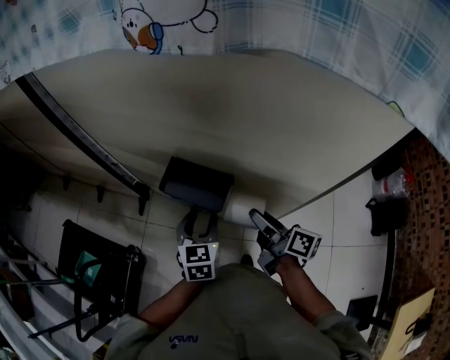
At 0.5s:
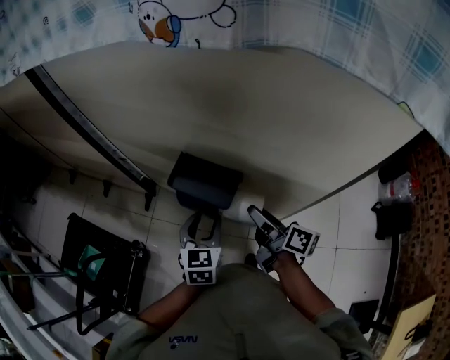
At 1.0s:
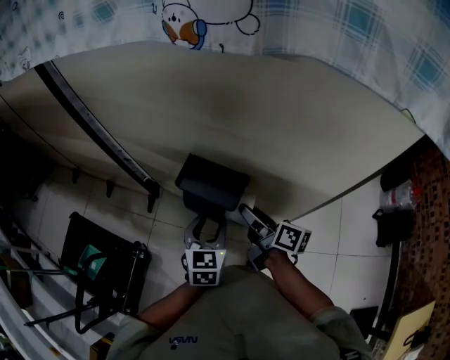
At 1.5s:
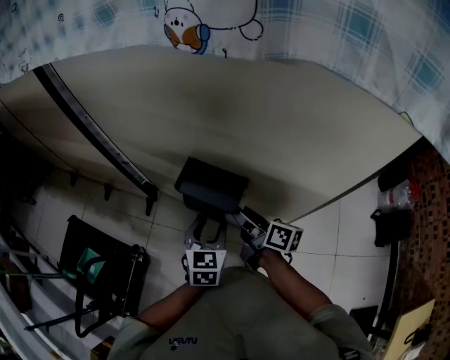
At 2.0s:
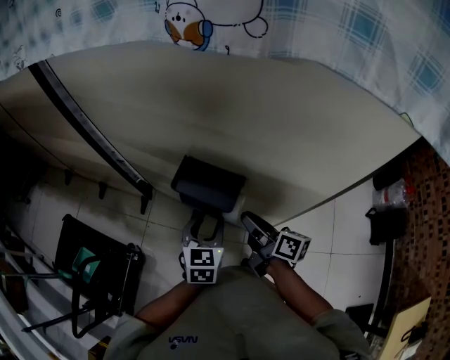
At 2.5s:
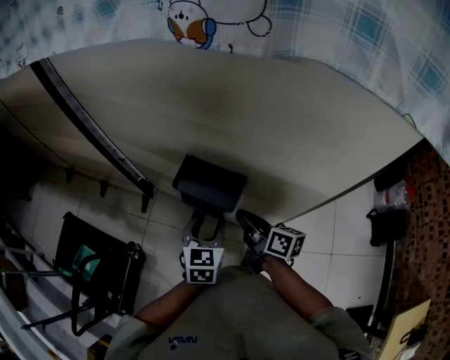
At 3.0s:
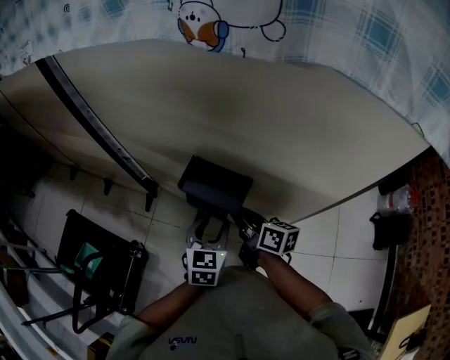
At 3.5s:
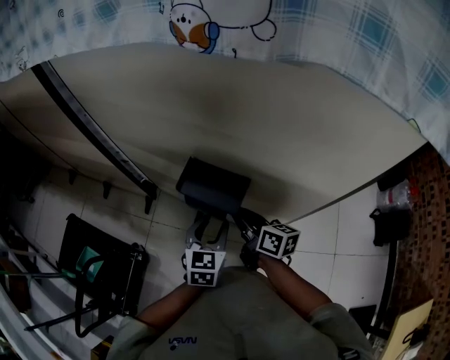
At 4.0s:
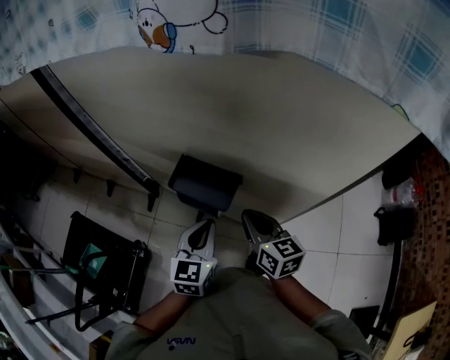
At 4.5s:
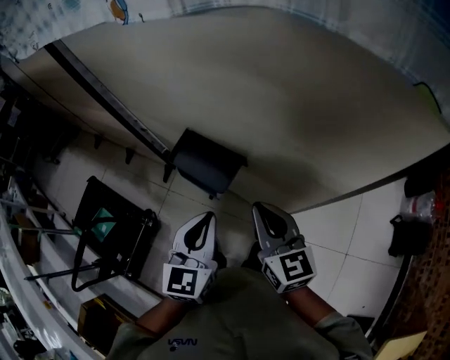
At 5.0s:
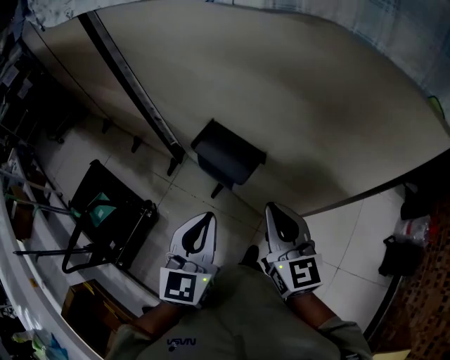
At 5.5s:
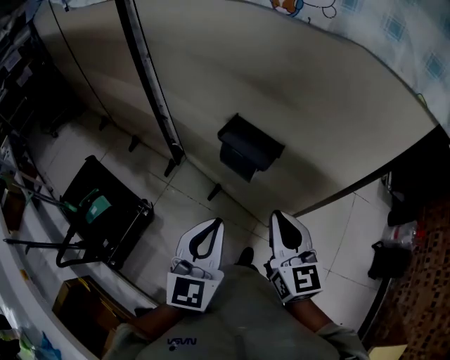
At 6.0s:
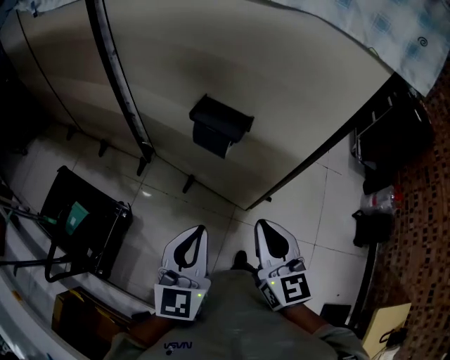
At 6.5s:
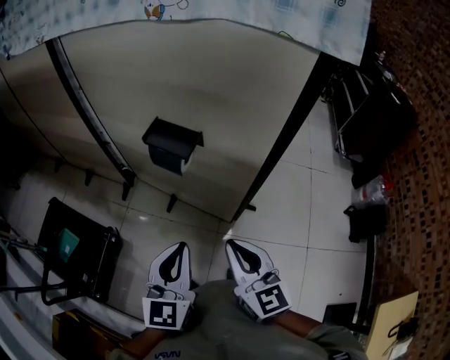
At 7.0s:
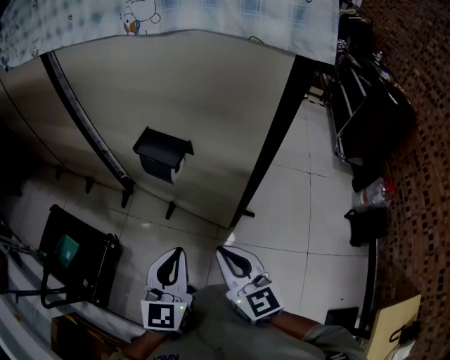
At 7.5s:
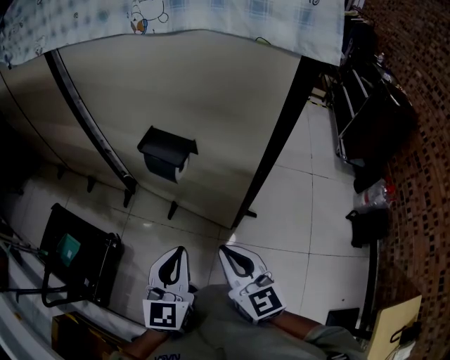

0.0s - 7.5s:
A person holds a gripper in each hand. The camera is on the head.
0.0s - 2.0s: The right gripper heads to the left, covering about 5 cm, and closes its fingers.
2.0s - 4.0s: The right gripper turns by roughly 40 degrees, while the left gripper closes its fingers.
4.0s - 5.5s: The left gripper is displaced backward, upward and to the left by approximately 20 cm. The right gripper shifts roughly 15 cm backward and upward, and turns by some 20 degrees.
5.5s - 7.5s: The left gripper moves to the right and backward, about 15 cm. Meanwhile the right gripper goes some 15 cm backward and to the right.

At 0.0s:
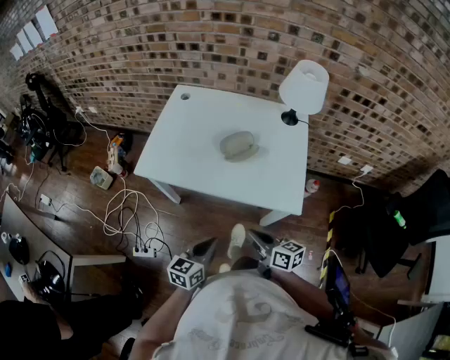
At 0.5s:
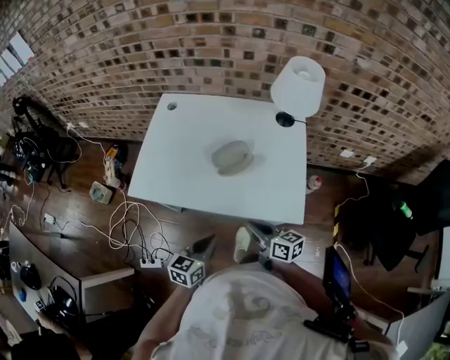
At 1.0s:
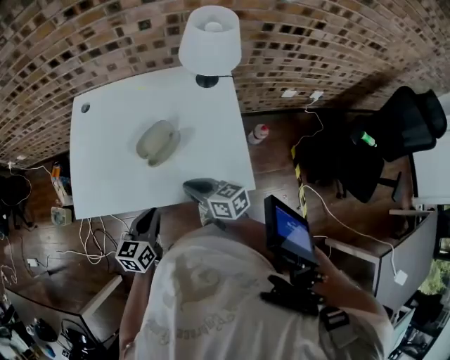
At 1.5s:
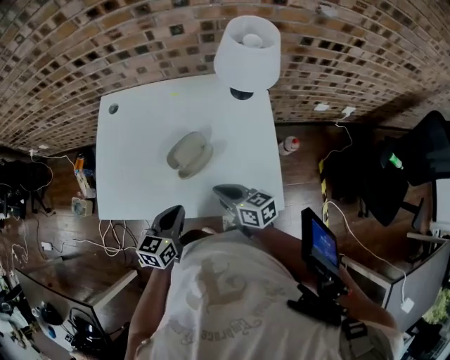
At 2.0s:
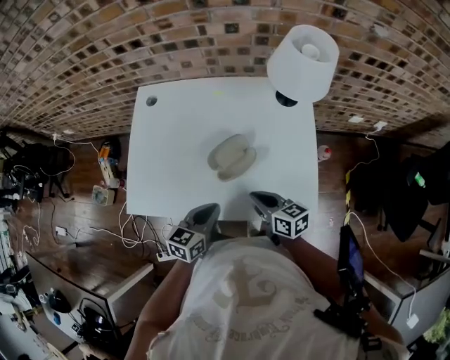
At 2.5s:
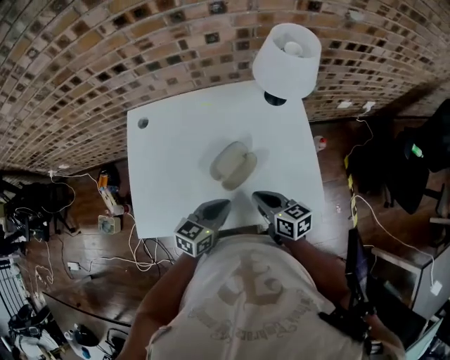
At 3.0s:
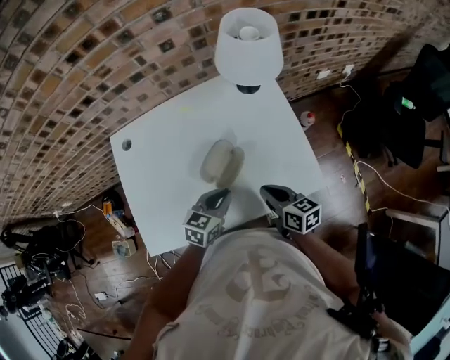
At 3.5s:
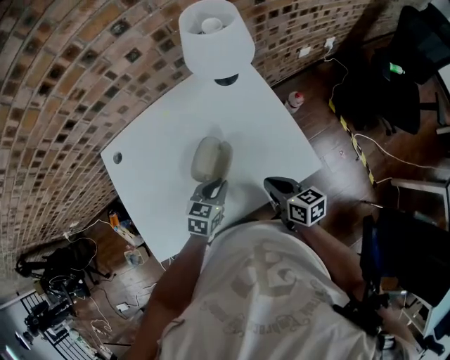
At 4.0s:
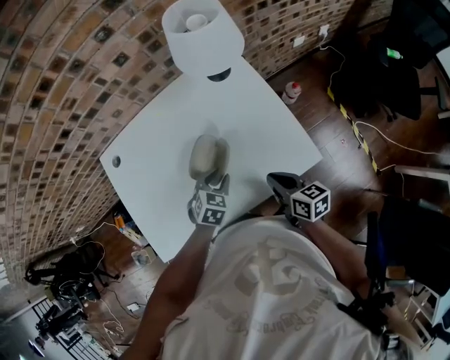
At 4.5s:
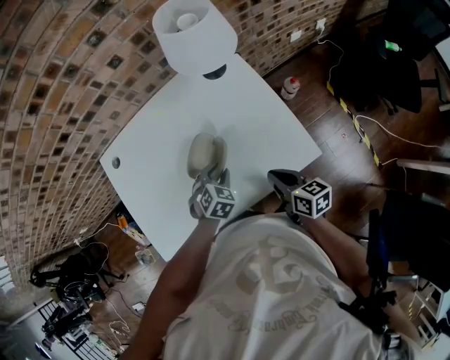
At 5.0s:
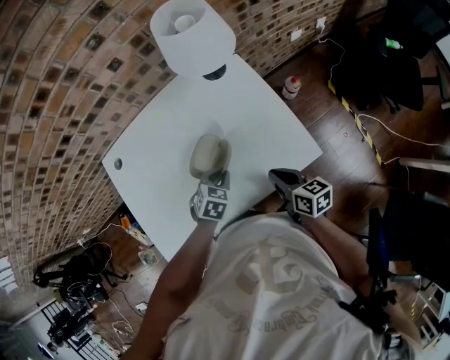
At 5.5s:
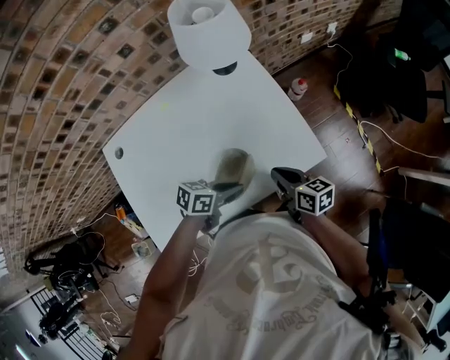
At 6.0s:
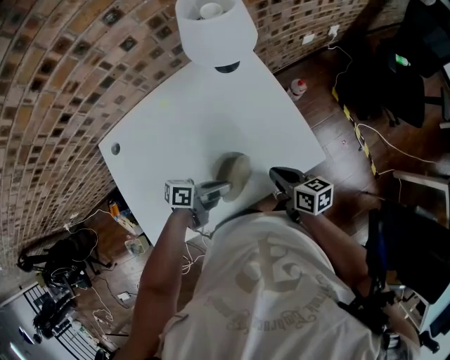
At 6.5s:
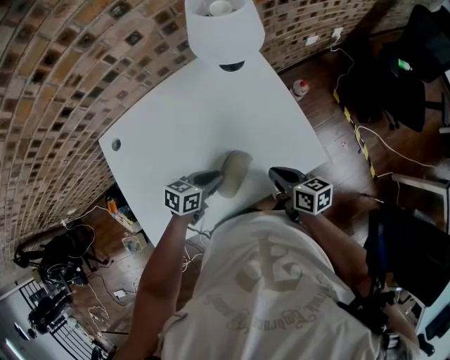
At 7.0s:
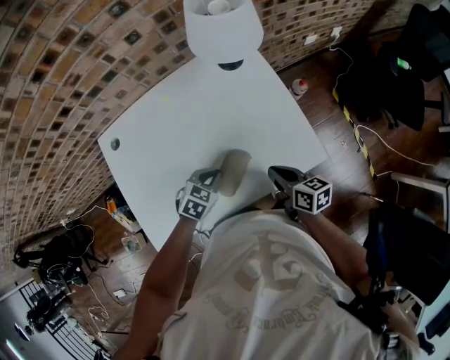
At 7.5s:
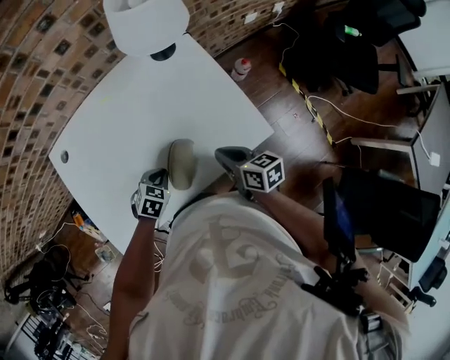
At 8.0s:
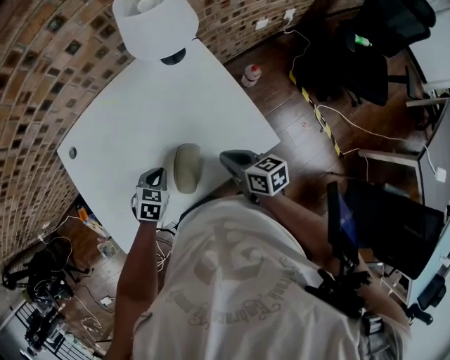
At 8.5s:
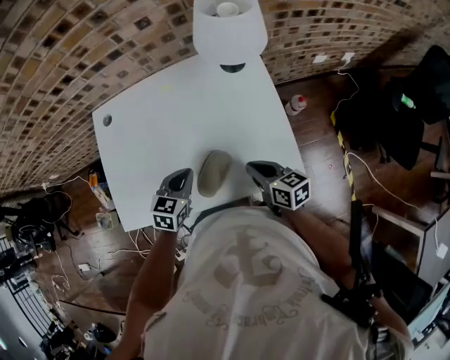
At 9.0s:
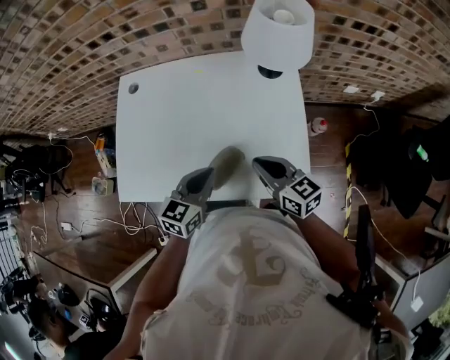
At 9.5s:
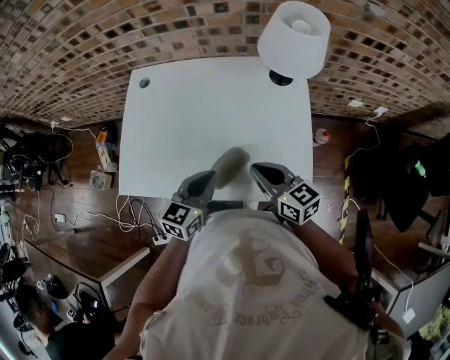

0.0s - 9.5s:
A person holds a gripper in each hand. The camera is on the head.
0.0s - 2.0s: Both grippers travel together forward, approximately 25 cm.
2.0s - 4.0s: The left gripper shifts by approximately 15 cm, rotates around the line of its fingers by approximately 40 degrees, clockwise from behind, and opens its fingers; the right gripper shifts by some 5 cm, and rotates approximately 30 degrees.
4.0s - 5.5s: The left gripper moves about 10 cm, rotates some 50 degrees, and closes up.
5.5s - 7.5s: The left gripper moves about 15 cm, and tips its fingers downward by some 30 degrees.
7.5s - 9.5s: The left gripper travels upward by about 20 cm, and angles its fingers upward, by some 40 degrees. The right gripper heads upward, covering approximately 10 cm, and swivels some 40 degrees.

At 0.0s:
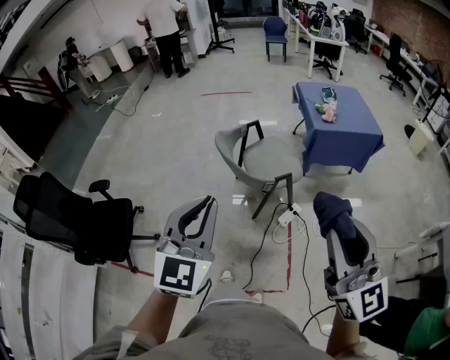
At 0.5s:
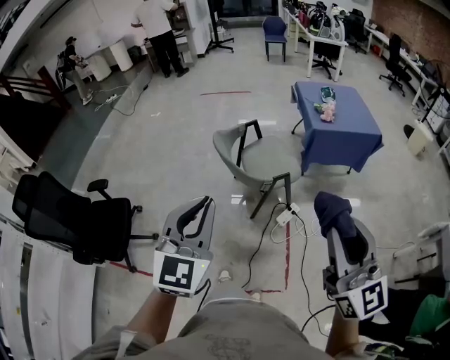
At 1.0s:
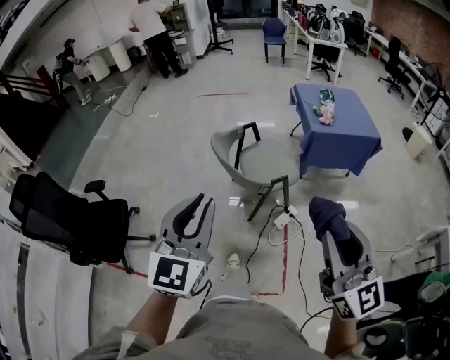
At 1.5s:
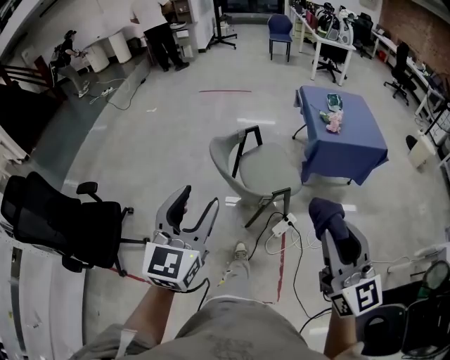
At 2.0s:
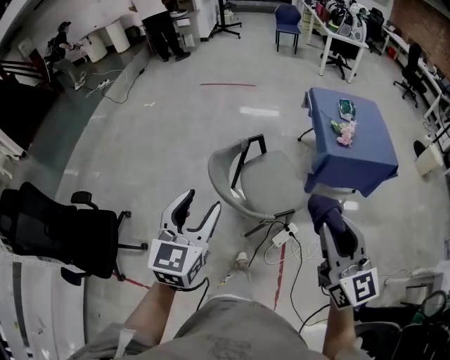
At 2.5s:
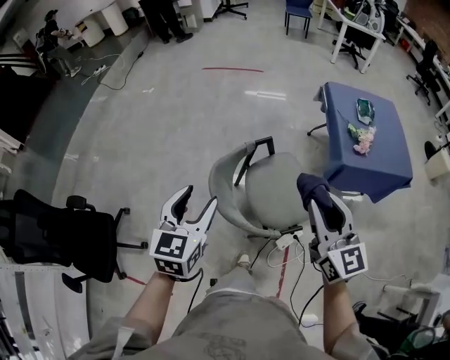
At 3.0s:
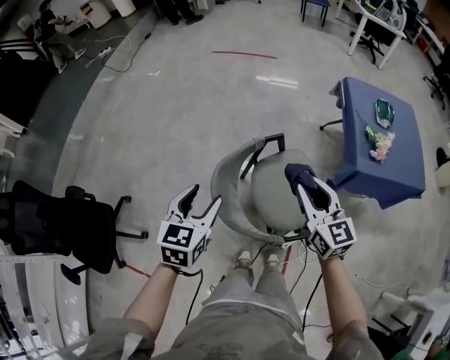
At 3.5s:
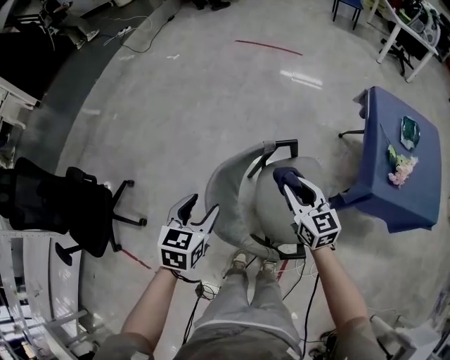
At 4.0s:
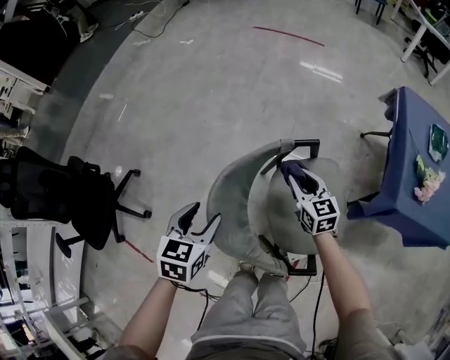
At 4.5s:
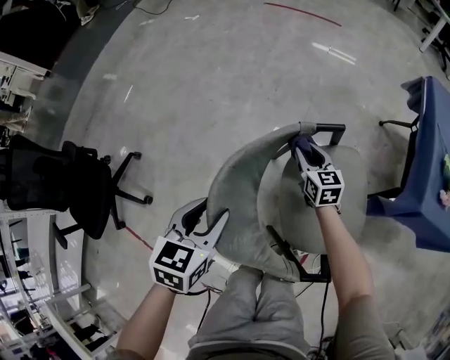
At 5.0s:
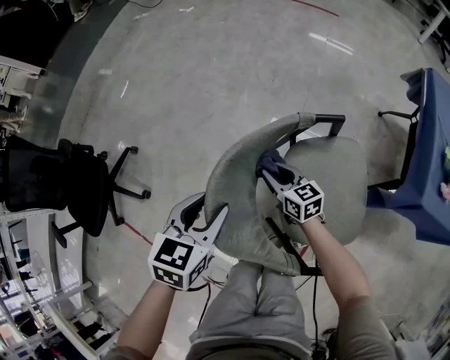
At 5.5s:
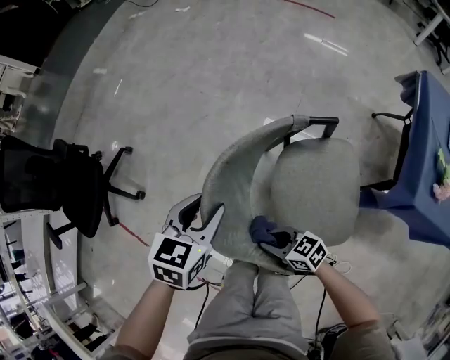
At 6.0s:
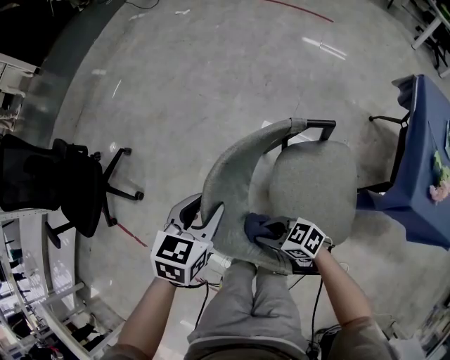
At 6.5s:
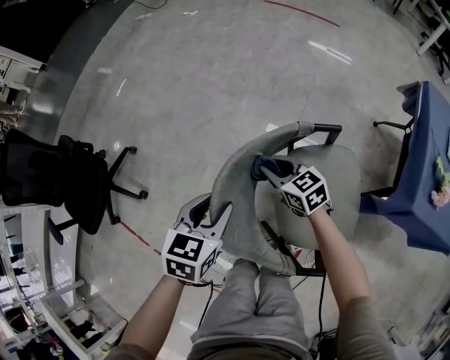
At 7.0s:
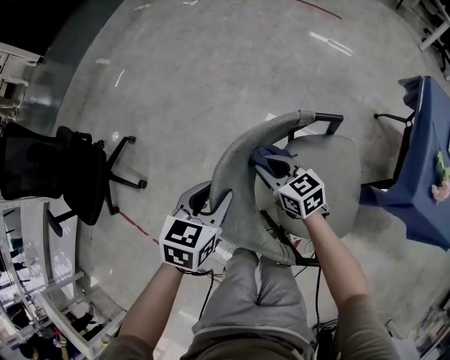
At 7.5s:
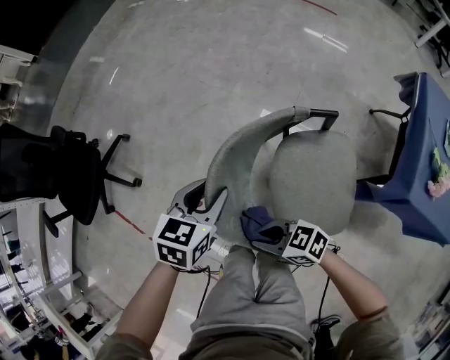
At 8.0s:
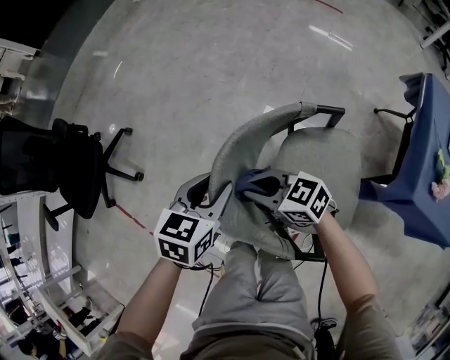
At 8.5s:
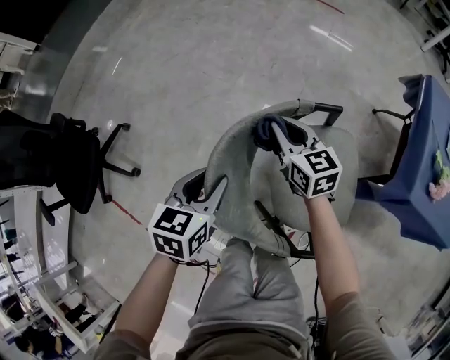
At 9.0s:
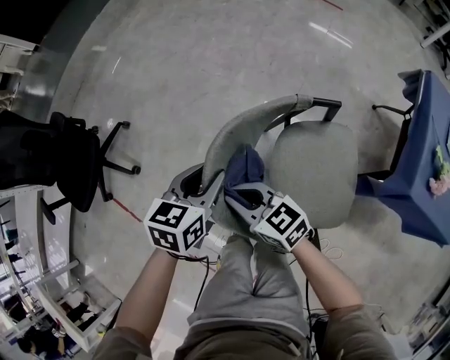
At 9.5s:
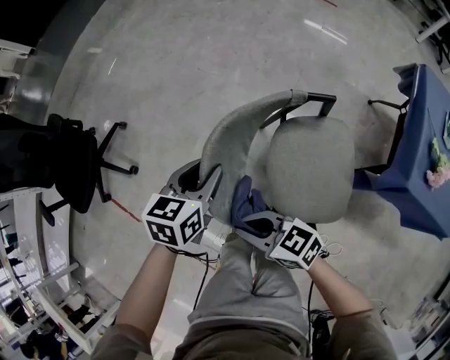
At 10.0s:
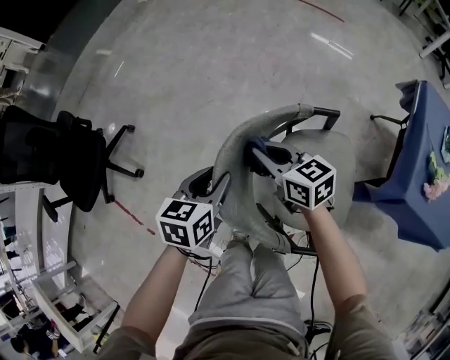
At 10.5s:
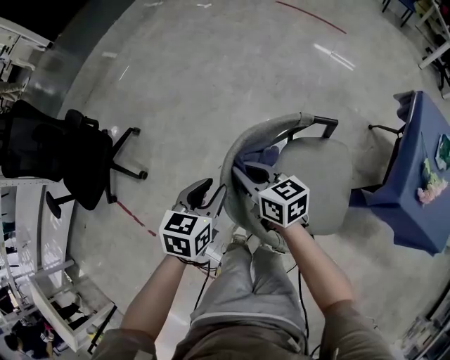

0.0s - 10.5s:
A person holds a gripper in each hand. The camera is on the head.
0.0s - 2.0s: The two grippers go roughly 30 cm forward. The left gripper opens.
2.0s - 4.0s: The left gripper moves downward and forward, about 40 cm, and angles its fingers downward, by roughly 30 degrees; the right gripper goes some 60 cm downward and forward, and turns by roughly 40 degrees.
4.0s - 6.5s: The right gripper turns by approximately 30 degrees.
6.5s - 8.5s: The right gripper shifts some 5 cm upward.
8.5s - 10.5s: The right gripper moves to the left, roughly 15 cm, travels backward and back again, about 25 cm each way, and rotates approximately 20 degrees; the left gripper moves roughly 5 cm.
